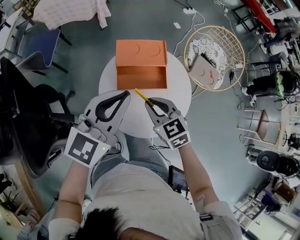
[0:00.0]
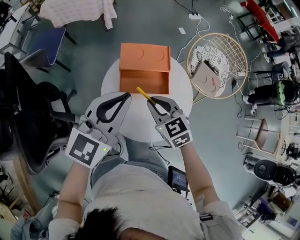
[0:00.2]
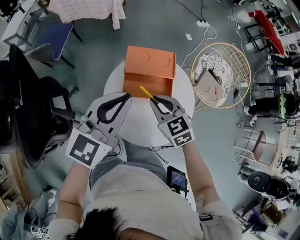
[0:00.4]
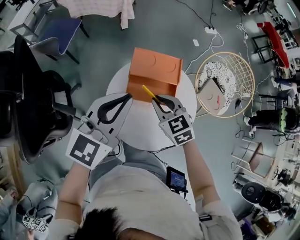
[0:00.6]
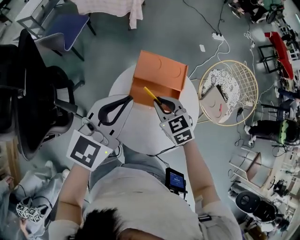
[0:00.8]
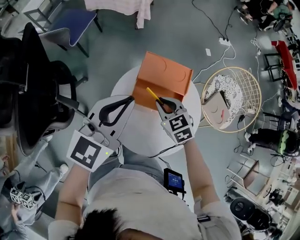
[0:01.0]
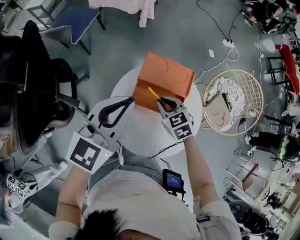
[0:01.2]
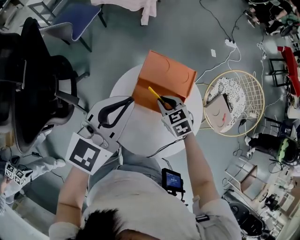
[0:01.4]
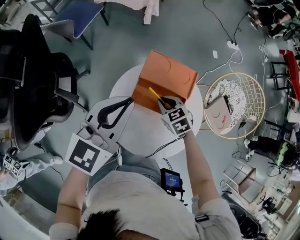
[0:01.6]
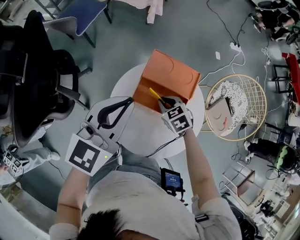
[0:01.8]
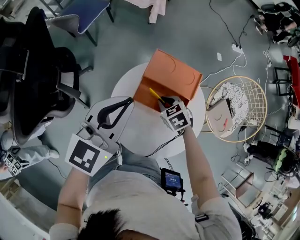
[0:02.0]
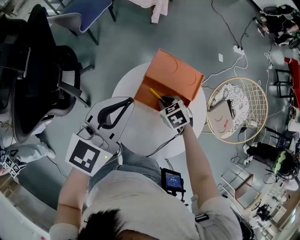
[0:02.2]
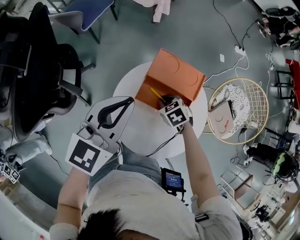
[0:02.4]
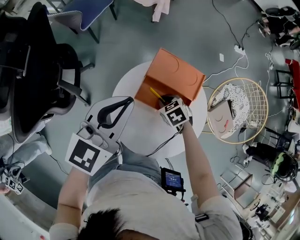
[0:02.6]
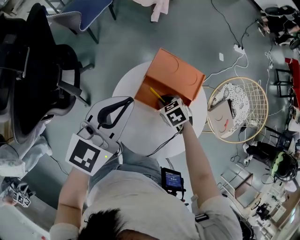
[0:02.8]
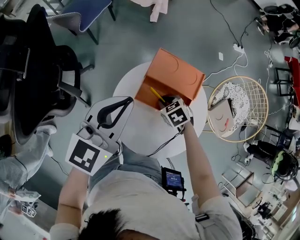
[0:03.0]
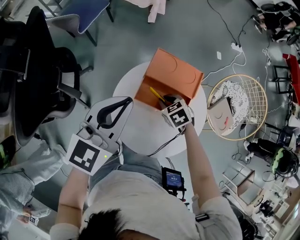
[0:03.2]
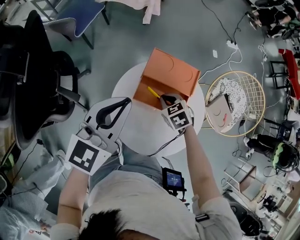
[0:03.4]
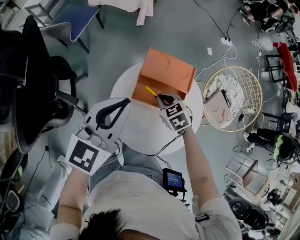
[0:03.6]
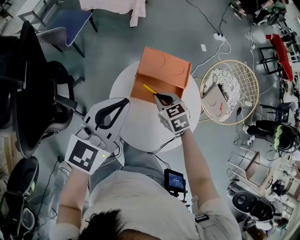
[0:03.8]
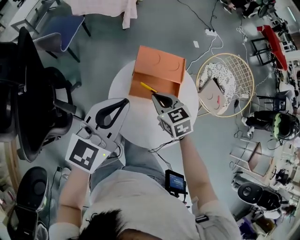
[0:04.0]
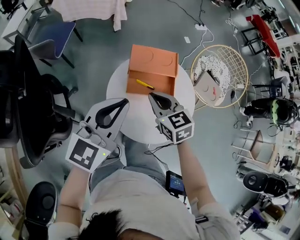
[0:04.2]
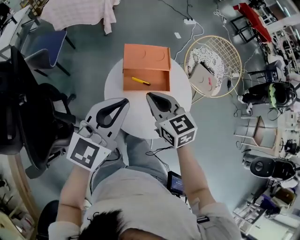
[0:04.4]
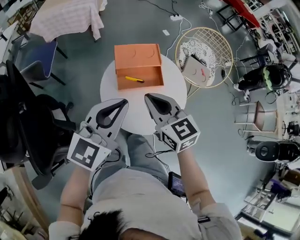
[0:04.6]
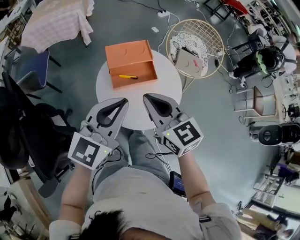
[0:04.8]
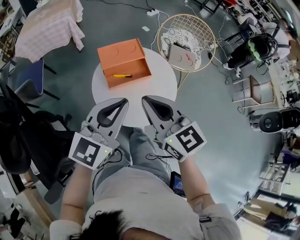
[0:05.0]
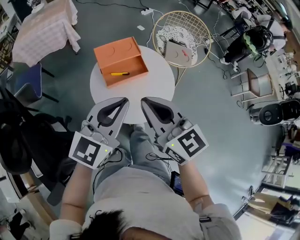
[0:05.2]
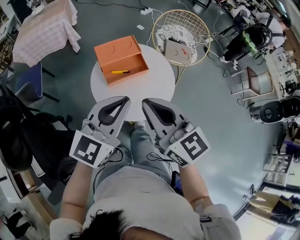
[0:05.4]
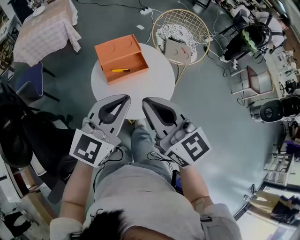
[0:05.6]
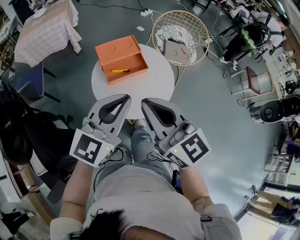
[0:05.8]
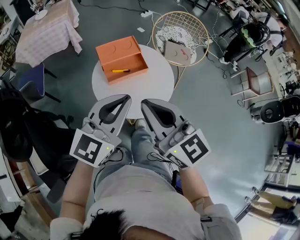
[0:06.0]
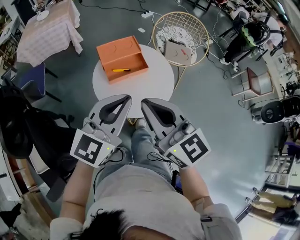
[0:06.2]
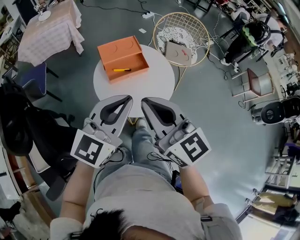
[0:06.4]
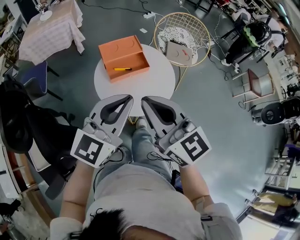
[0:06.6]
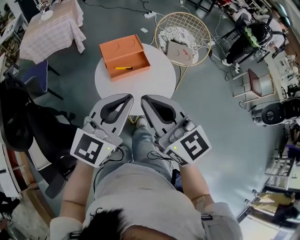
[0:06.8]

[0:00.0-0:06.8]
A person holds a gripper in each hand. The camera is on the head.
0:00.0 to 0:01.4: The left gripper travels forward by approximately 5 cm, and turns by some 20 degrees; the right gripper moves forward and downward, some 15 cm, and swivels roughly 20 degrees.
0:01.4 to 0:02.8: The right gripper goes some 5 cm downward.
0:02.8 to 0:04.0: The left gripper shifts by about 5 cm, while the right gripper goes some 15 cm upward, and rotates roughly 30 degrees.
0:04.0 to 0:05.4: The right gripper travels upward by some 20 cm, and angles its fingers upward, by some 40 degrees. The left gripper changes place by approximately 15 cm, and rotates roughly 30 degrees.
0:05.4 to 0:06.8: The right gripper moves approximately 5 cm. Meanwhile the left gripper moves about 5 cm.

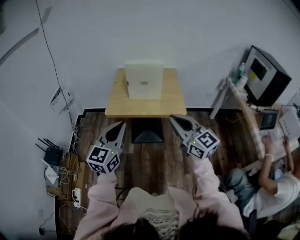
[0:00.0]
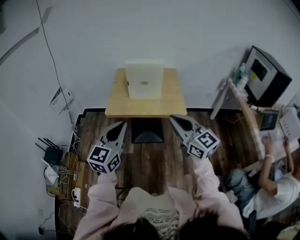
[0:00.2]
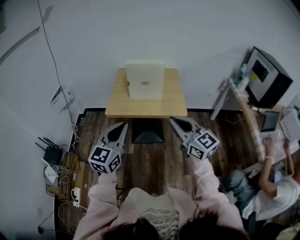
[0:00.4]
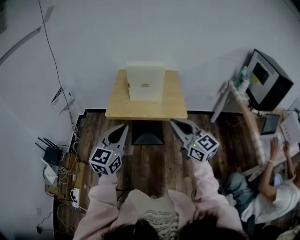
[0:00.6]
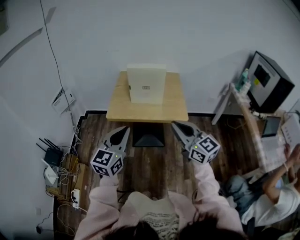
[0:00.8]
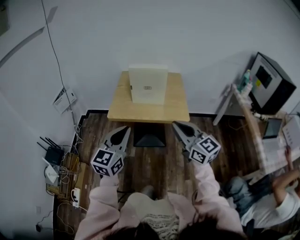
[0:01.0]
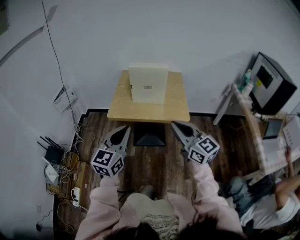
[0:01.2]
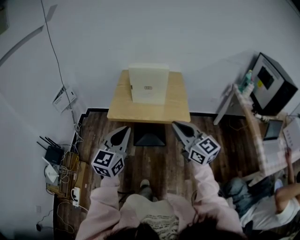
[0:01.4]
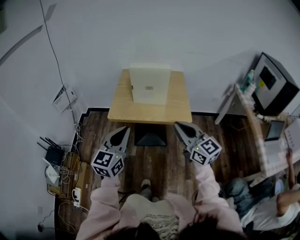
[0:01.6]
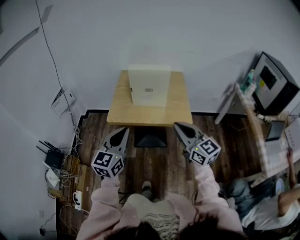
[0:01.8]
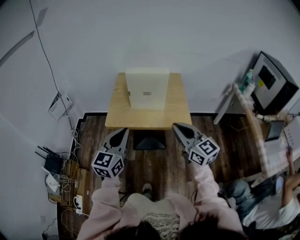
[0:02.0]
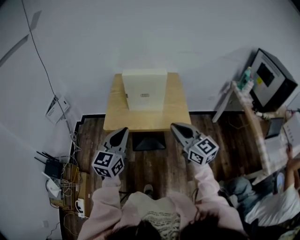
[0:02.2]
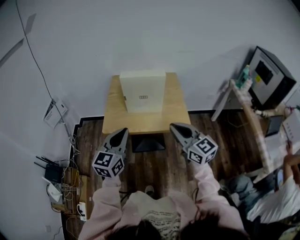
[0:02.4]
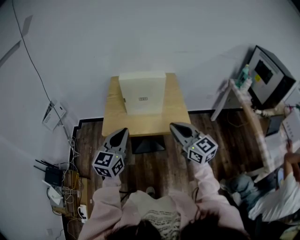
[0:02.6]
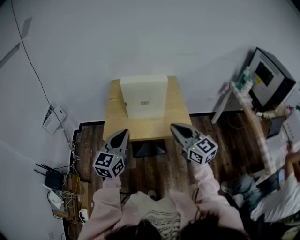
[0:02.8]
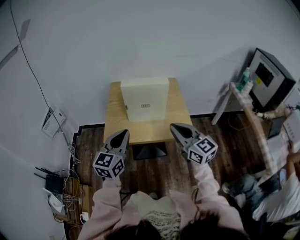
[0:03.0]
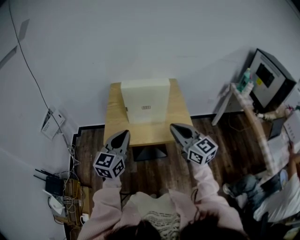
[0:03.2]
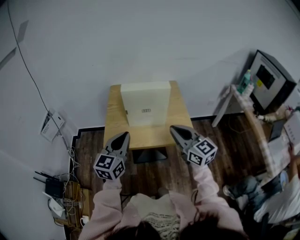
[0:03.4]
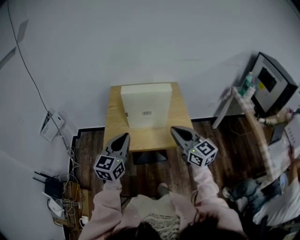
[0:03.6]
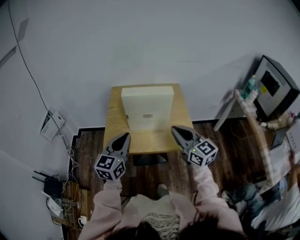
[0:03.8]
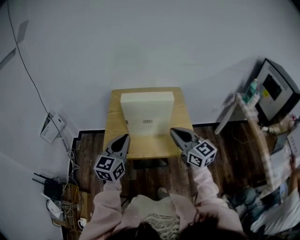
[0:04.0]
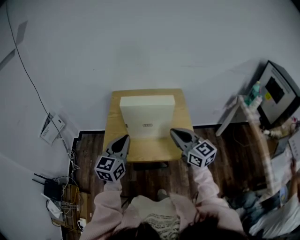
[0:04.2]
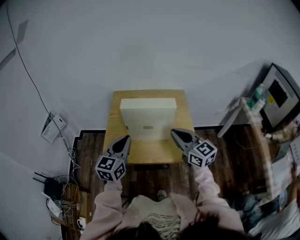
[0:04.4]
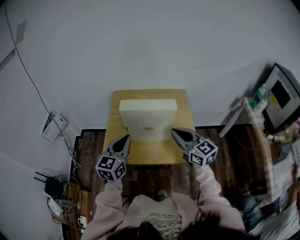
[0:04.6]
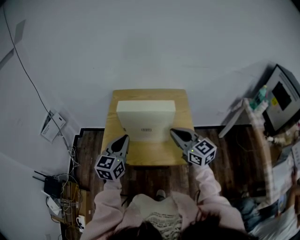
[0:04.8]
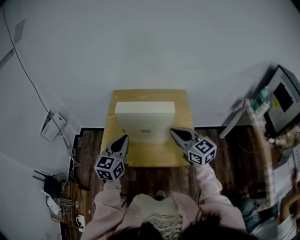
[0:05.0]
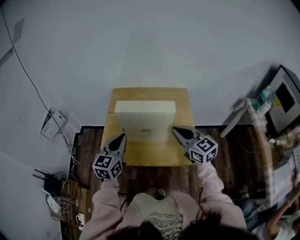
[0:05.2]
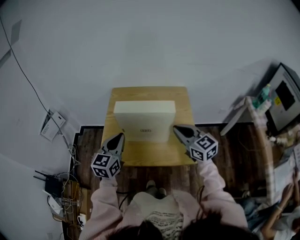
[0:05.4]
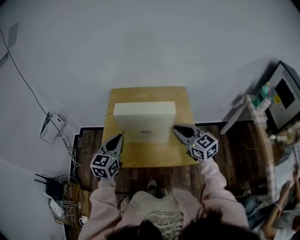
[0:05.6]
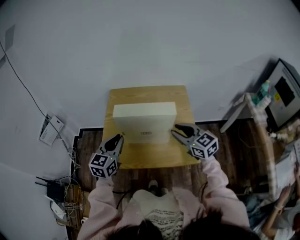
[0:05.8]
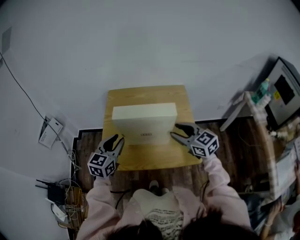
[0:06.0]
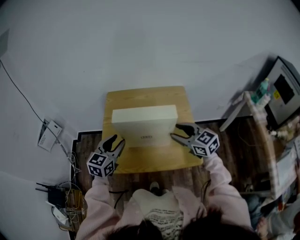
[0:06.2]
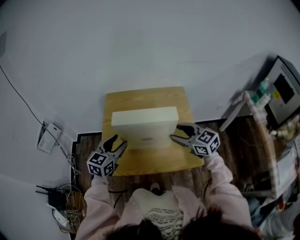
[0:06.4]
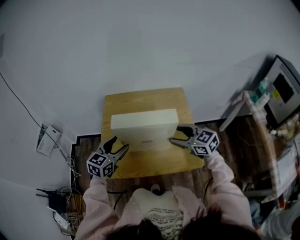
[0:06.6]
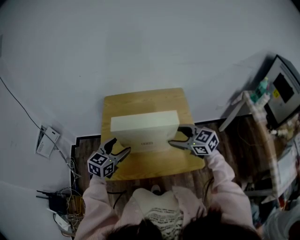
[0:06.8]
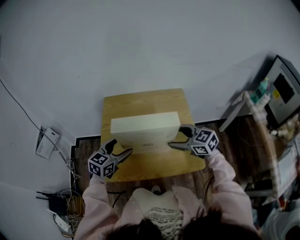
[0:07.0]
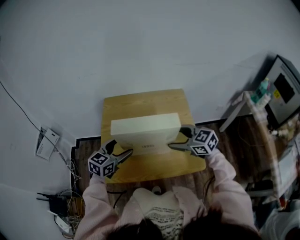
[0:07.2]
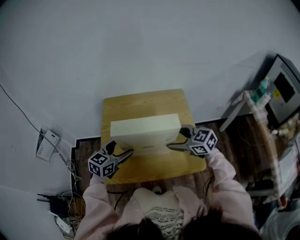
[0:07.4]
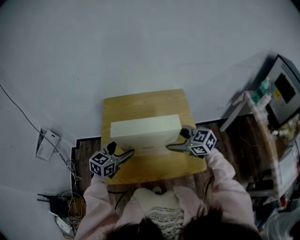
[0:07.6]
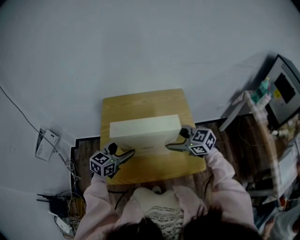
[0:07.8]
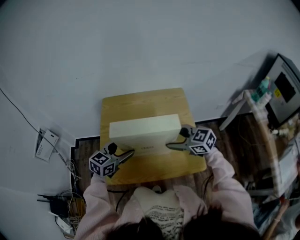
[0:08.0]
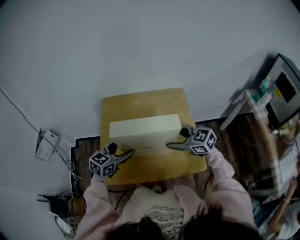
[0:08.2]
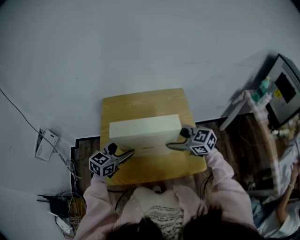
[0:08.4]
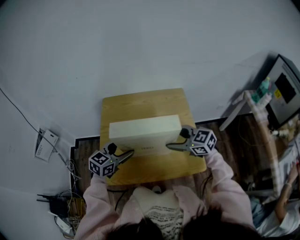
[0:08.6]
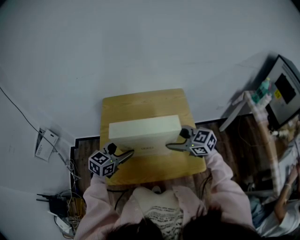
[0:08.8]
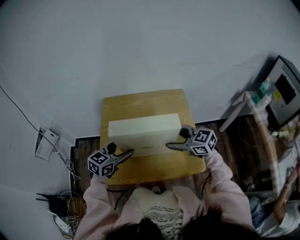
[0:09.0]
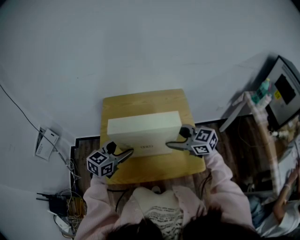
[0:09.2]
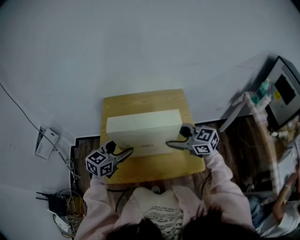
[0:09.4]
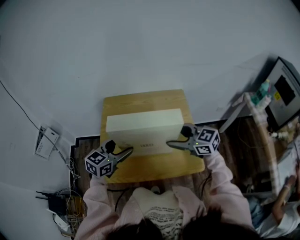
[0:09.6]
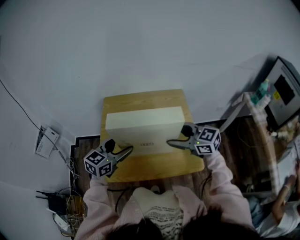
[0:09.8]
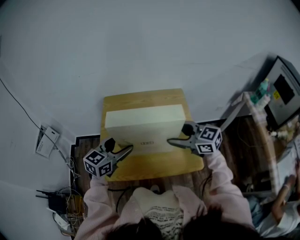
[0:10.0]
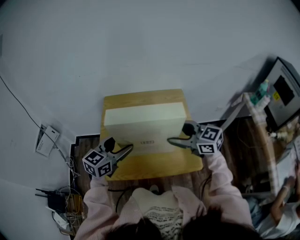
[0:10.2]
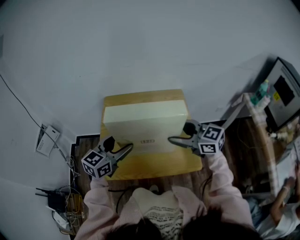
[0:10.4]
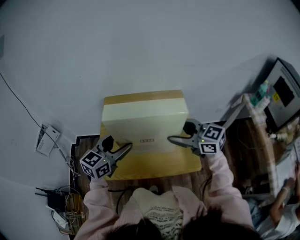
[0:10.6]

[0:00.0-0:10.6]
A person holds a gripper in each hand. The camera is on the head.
0:00.0 to 0:01.6: The right gripper shifts by about 5 cm.
0:01.6 to 0:03.0: Both grippers travel together forward, some 15 cm.
0:03.0 to 0:04.6: The two grippers go some 15 cm forward.
0:04.6 to 0:06.0: The right gripper heads downward and forward, covering approximately 10 cm, and opens; the left gripper moves forward and downward, about 10 cm.
0:06.0 to 0:07.6: The right gripper moves roughly 5 cm, and opens. Meanwhile the left gripper goes roughly 5 cm downward, and opens up.
0:07.6 to 0:09.0: The two grippers keep their place.
0:09.0 to 0:10.6: The grippers both shift upward by approximately 10 cm.

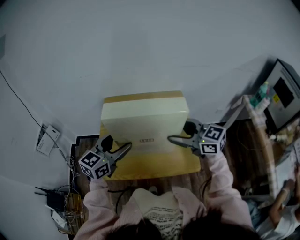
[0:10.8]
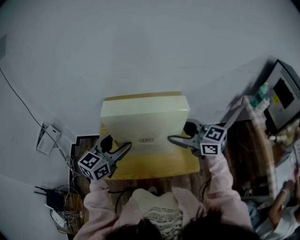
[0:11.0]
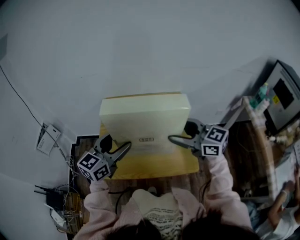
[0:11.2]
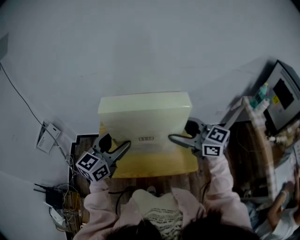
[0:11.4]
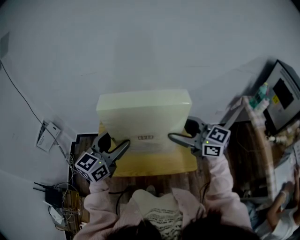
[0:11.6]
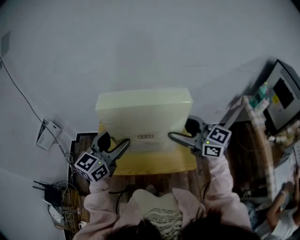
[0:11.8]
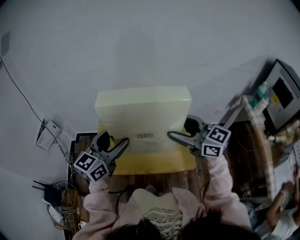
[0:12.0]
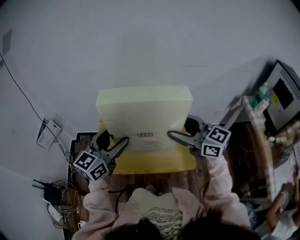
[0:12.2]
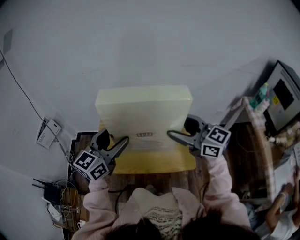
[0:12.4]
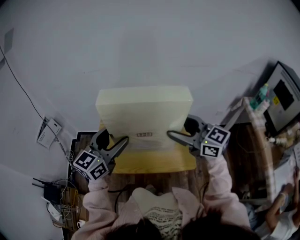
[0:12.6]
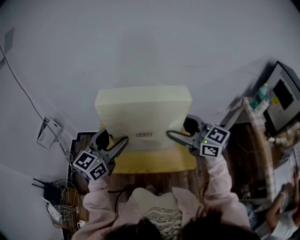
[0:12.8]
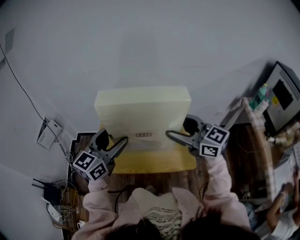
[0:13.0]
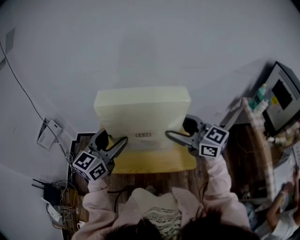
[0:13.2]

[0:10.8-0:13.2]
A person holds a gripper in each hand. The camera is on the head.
0:10.8 to 0:12.0: The left gripper ends up approximately 5 cm from where it was, while the right gripper shifts by some 5 cm.
0:12.0 to 0:13.2: The grippers make only small movements.

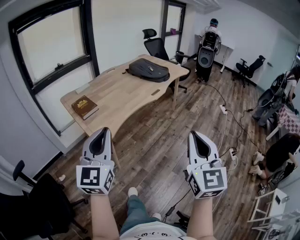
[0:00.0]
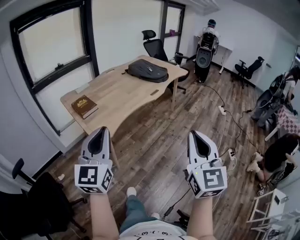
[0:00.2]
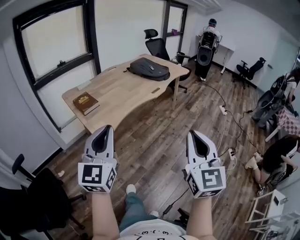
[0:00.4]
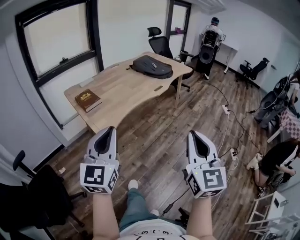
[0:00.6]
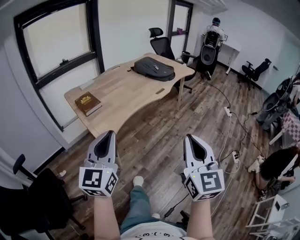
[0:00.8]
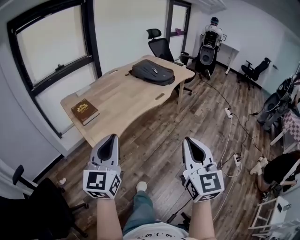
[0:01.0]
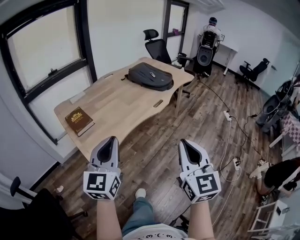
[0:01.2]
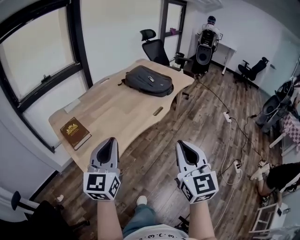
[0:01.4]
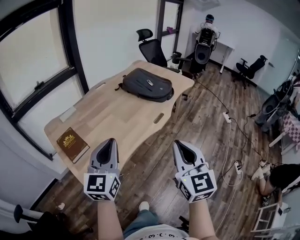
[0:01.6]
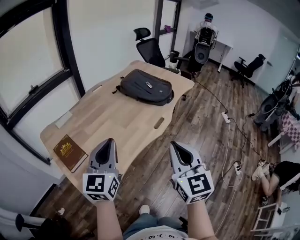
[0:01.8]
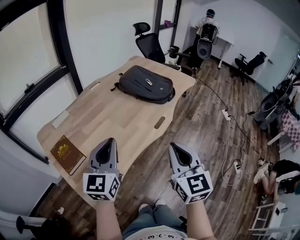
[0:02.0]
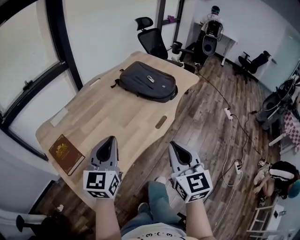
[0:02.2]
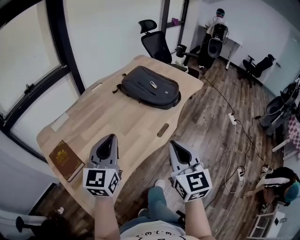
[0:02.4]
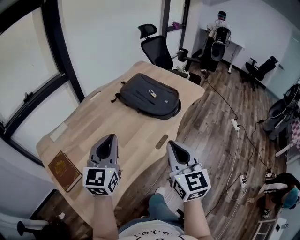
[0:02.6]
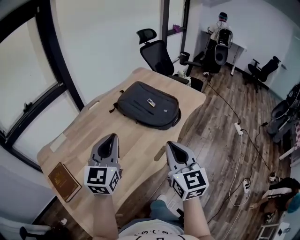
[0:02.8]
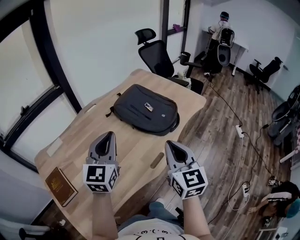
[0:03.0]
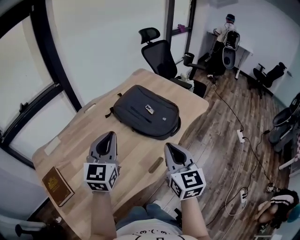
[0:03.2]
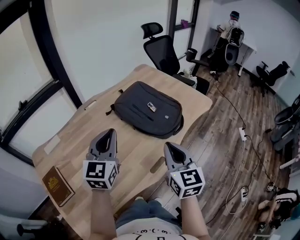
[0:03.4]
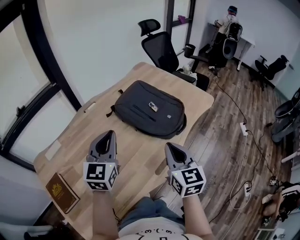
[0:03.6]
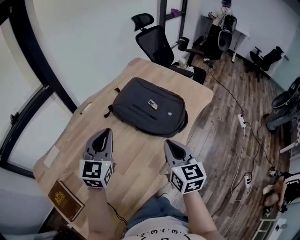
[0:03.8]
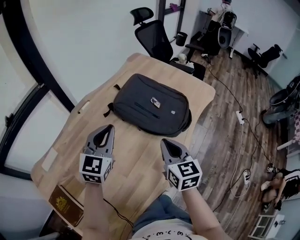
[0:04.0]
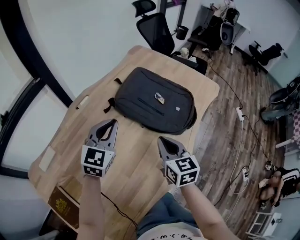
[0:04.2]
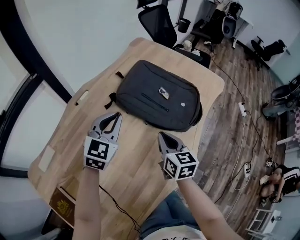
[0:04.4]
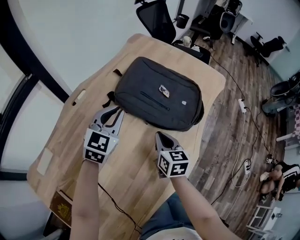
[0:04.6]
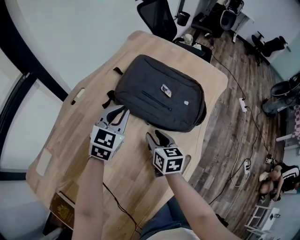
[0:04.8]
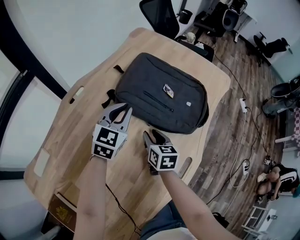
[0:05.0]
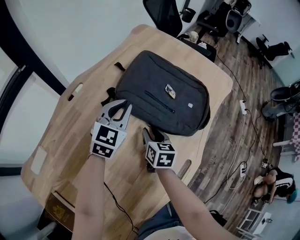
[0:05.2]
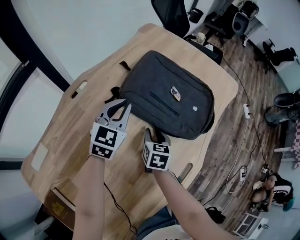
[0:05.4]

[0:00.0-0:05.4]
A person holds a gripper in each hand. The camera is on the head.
0:00.0 to 0:01.4: Both grippers move forward, approximately 25 cm.
0:01.4 to 0:02.8: The two grippers go some 40 cm forward.
0:02.8 to 0:04.0: The right gripper goes some 20 cm forward and downward, while the left gripper shifts some 20 cm forward.
0:04.0 to 0:05.4: The right gripper shifts about 25 cm downward, forward and to the left, changes its angle by roughly 30 degrees, and opens its fingers, while the left gripper moves forward and downward, roughly 20 cm.
